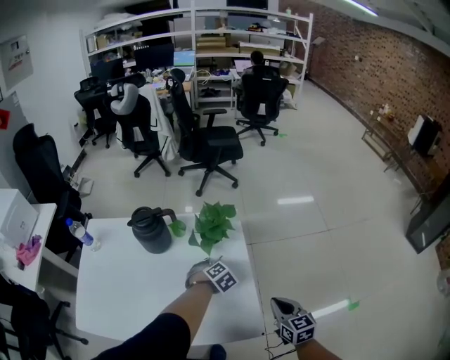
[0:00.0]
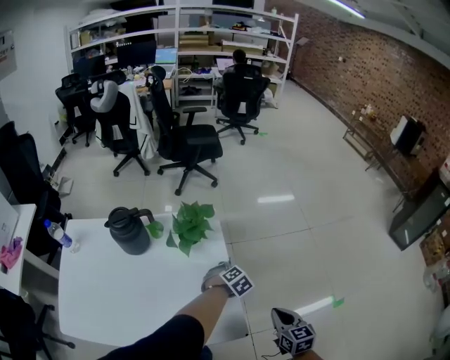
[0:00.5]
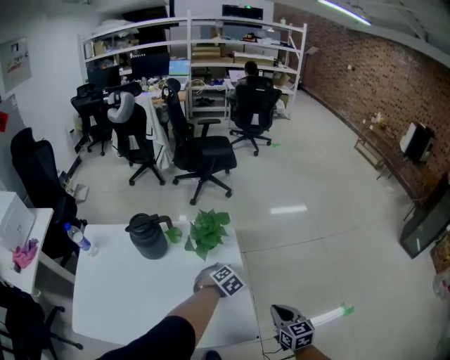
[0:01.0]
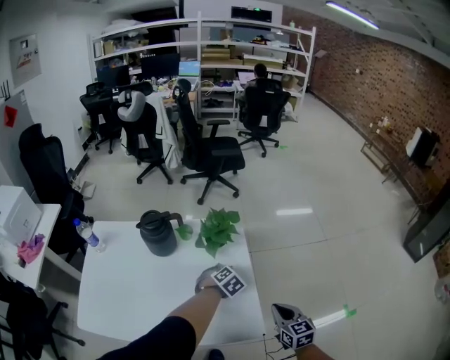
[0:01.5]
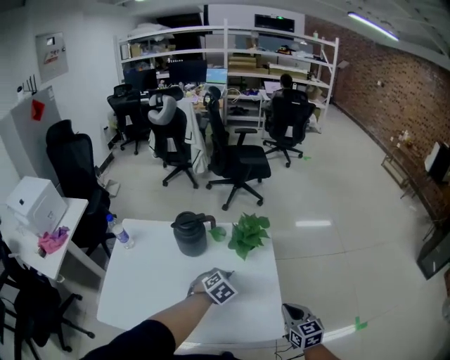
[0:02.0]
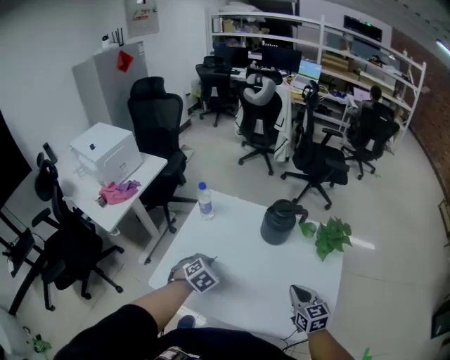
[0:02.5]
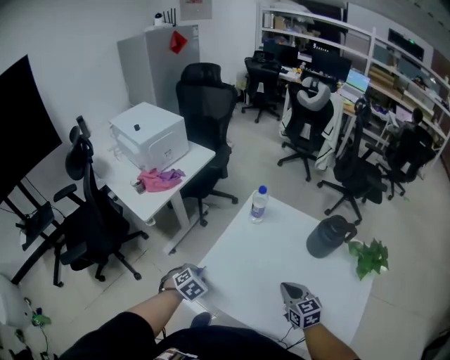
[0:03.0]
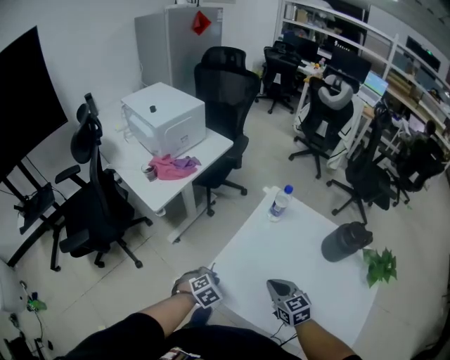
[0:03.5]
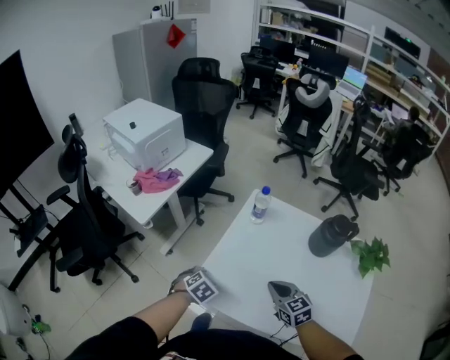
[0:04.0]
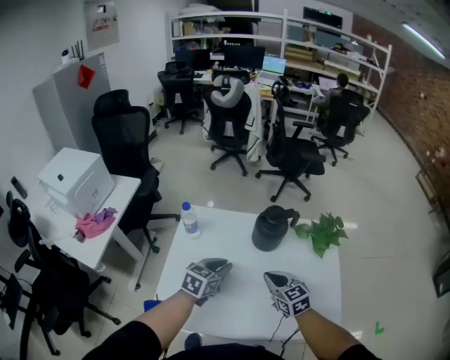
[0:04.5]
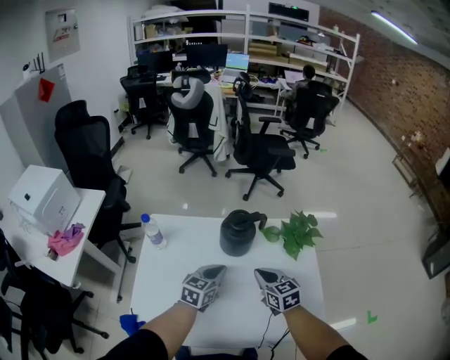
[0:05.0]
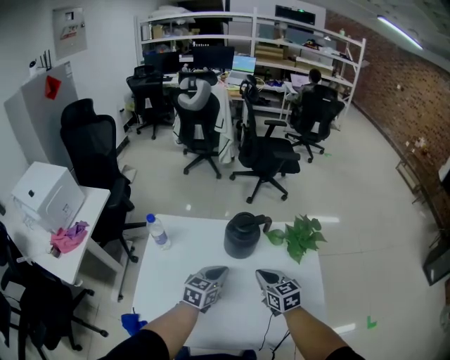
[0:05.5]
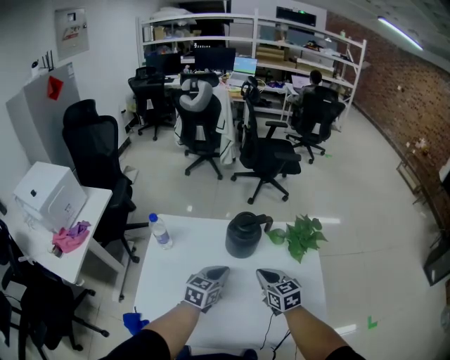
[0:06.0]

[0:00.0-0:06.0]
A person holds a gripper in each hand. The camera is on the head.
0:00.0 to 0:02.0: The right gripper shifts approximately 5 cm to the left; the left gripper heads to the left, upward and backward, covering about 15 cm.
0:02.0 to 0:04.0: Both grippers are carried roughly 60 cm. The left gripper swivels roughly 40 degrees, and opens its fingers. The right gripper swivels approximately 40 degrees.
0:04.0 to 0:06.0: The left gripper changes place by roughly 40 cm, tips its fingers upward by approximately 40 degrees, and closes up, while the right gripper moves roughly 25 cm, and swivels some 30 degrees.

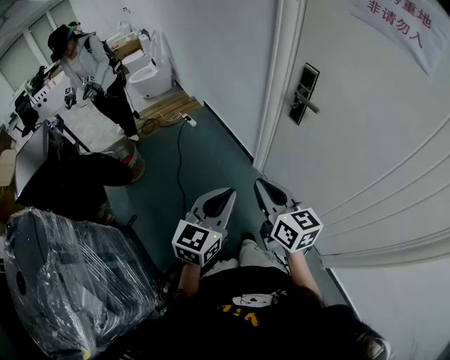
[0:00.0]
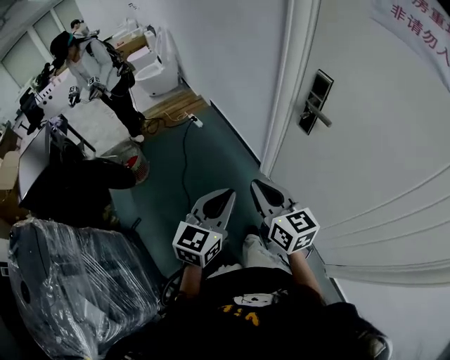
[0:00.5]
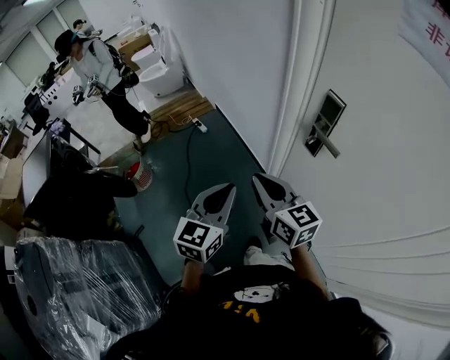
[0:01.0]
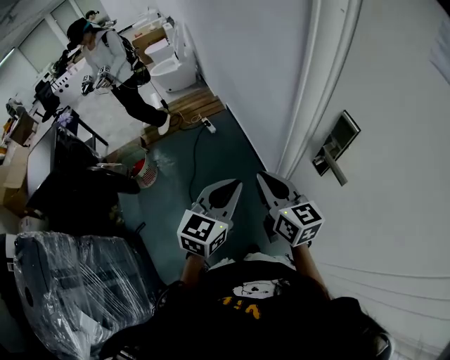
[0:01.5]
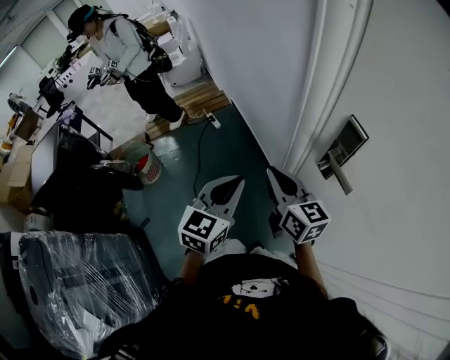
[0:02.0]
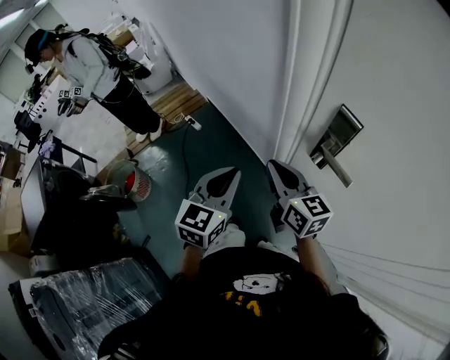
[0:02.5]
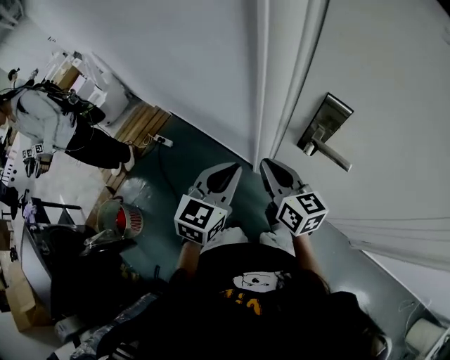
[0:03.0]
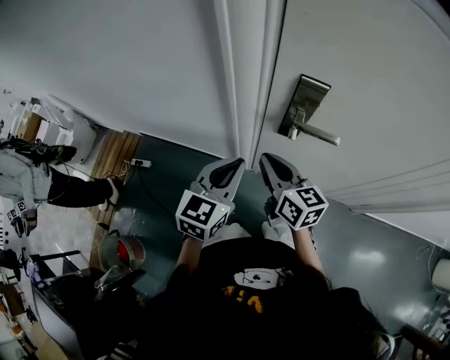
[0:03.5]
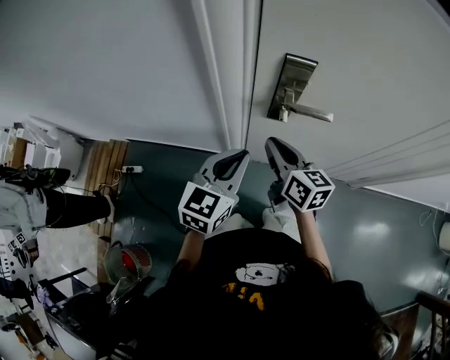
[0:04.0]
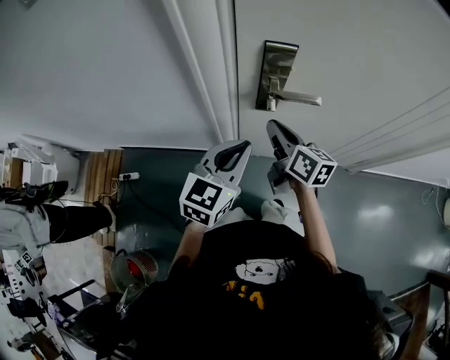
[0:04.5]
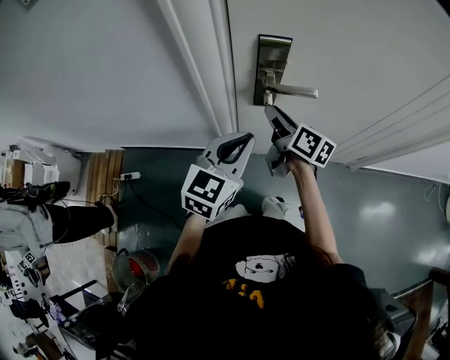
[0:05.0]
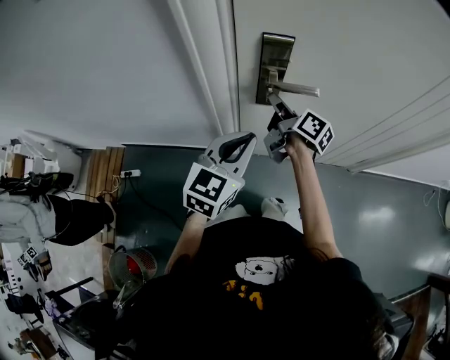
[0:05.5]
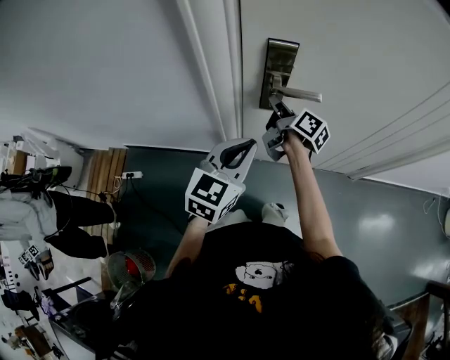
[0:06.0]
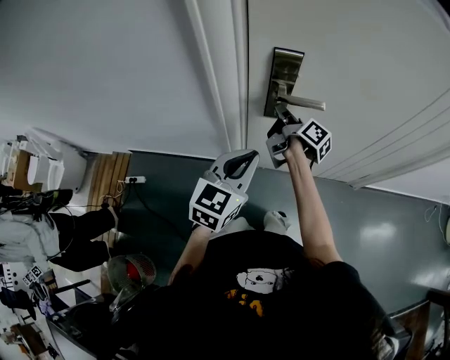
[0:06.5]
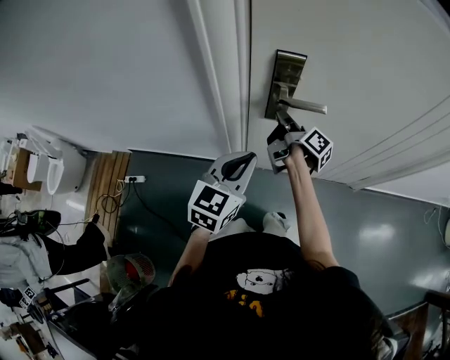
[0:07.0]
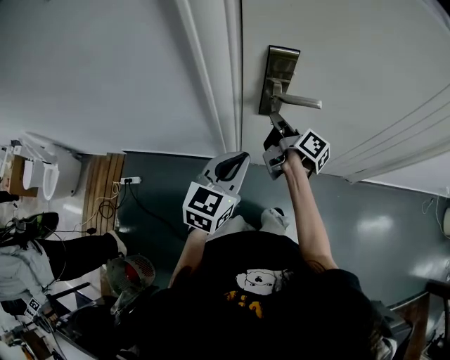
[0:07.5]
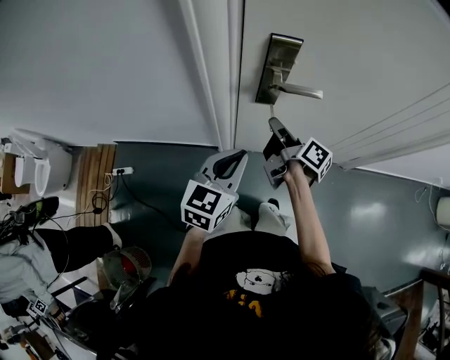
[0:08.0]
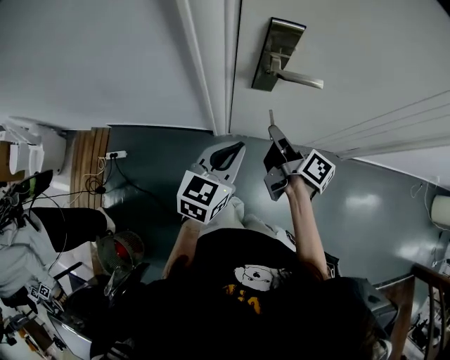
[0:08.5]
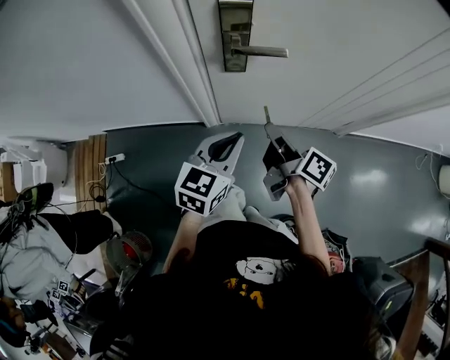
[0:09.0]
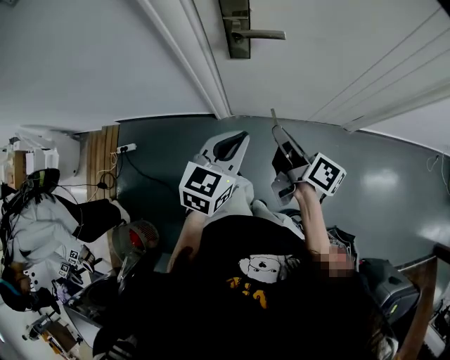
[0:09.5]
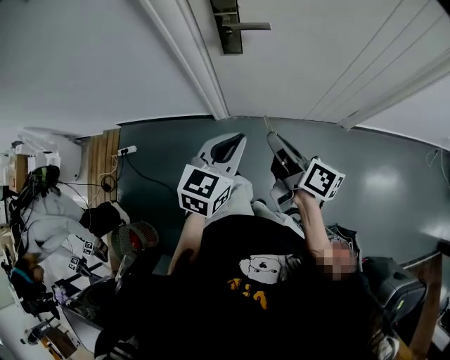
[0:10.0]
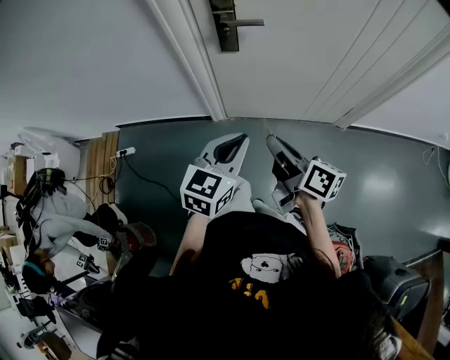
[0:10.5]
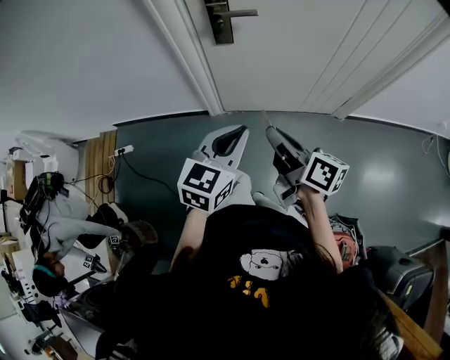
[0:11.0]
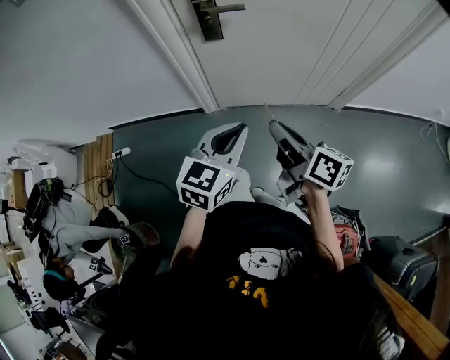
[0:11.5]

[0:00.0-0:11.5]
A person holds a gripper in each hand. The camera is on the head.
0:00.0 to 0:02.0: Both grippers travel together forward, about 30 cm.
0:02.0 to 0:04.0: The right gripper changes place by approximately 15 cm, and rotates approximately 60 degrees. The left gripper shifts by roughly 15 cm, and turns by some 60 degrees.
0:04.0 to 0:06.0: The right gripper goes about 10 cm forward, and changes its angle by approximately 40 degrees.
0:06.0 to 0:07.5: The grippers stay close to where they were, moving slightly.
0:07.5 to 0:09.5: The left gripper travels backward and to the right by approximately 15 cm. The right gripper heads backward and to the right, covering about 25 cm.
0:09.5 to 0:11.5: Both grippers travel together backward, roughly 10 cm.

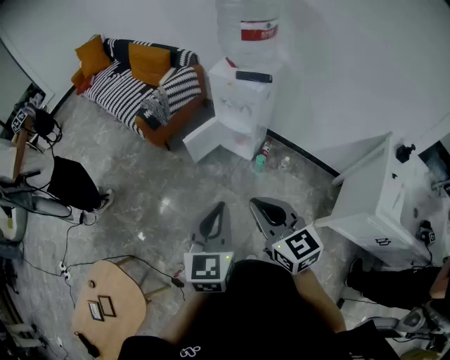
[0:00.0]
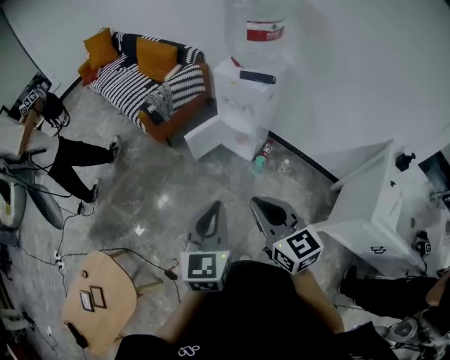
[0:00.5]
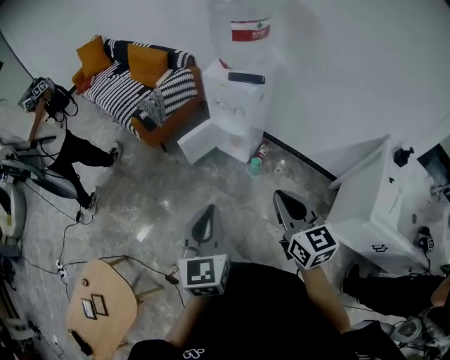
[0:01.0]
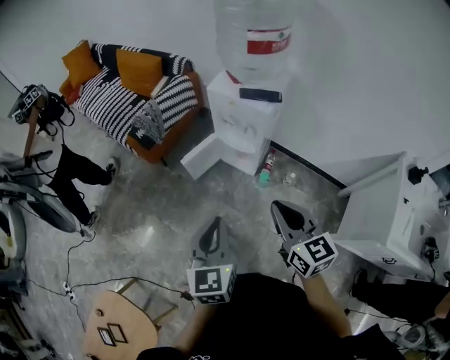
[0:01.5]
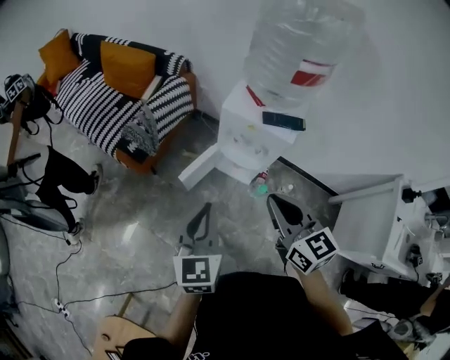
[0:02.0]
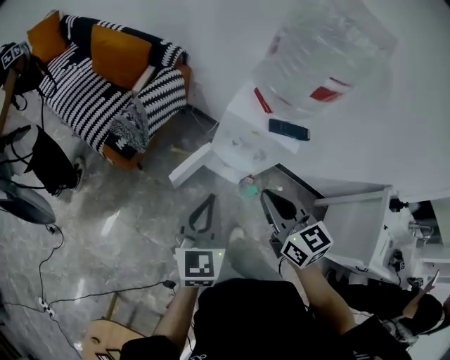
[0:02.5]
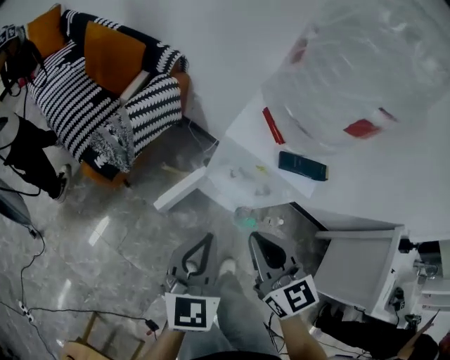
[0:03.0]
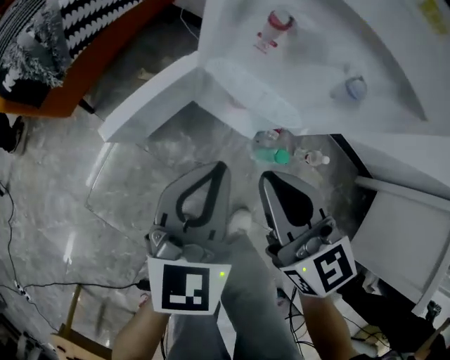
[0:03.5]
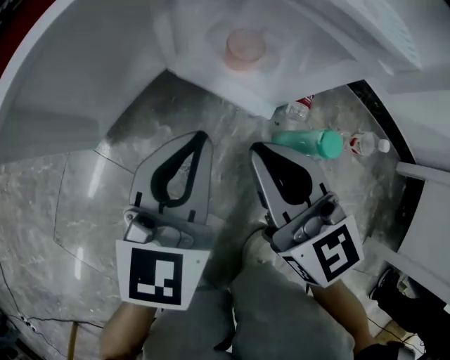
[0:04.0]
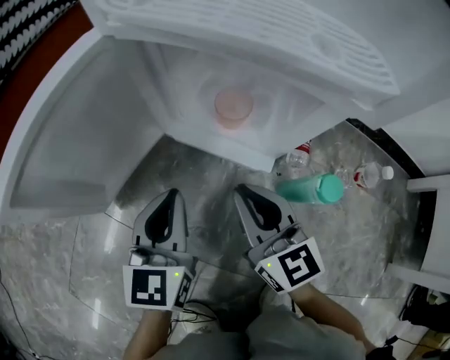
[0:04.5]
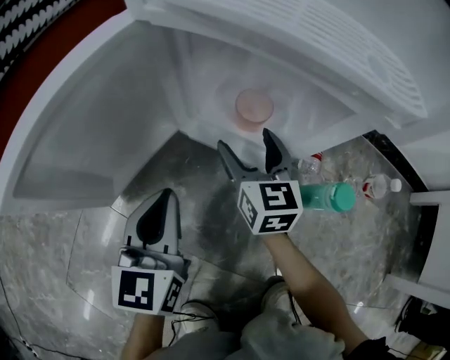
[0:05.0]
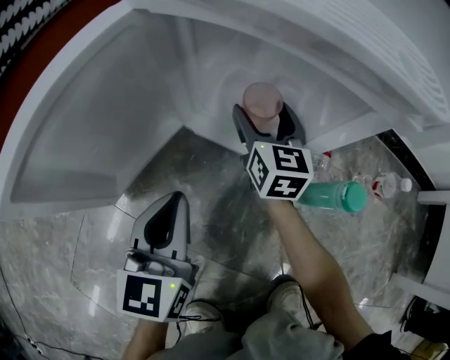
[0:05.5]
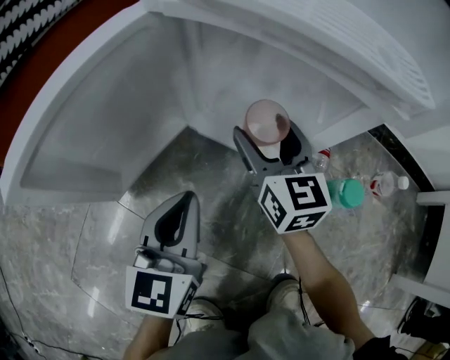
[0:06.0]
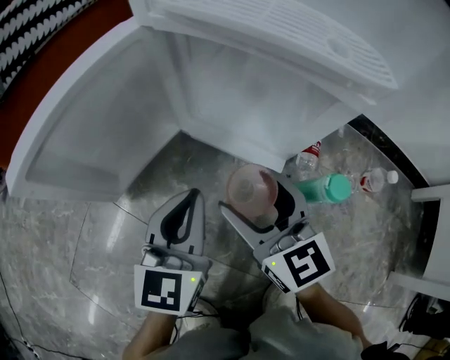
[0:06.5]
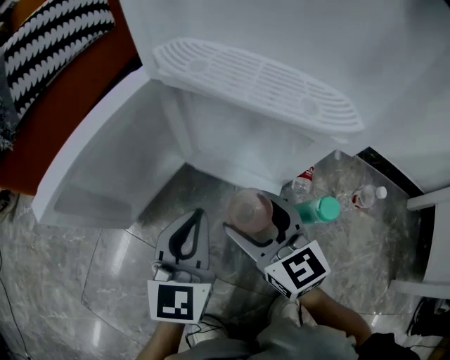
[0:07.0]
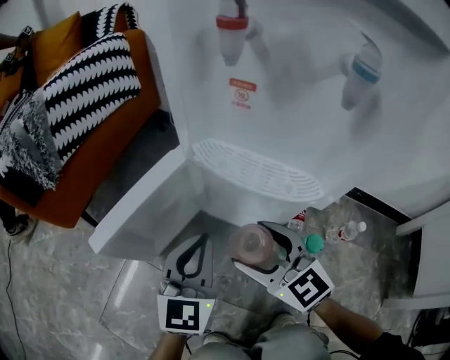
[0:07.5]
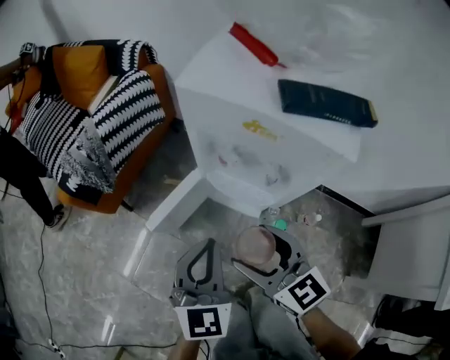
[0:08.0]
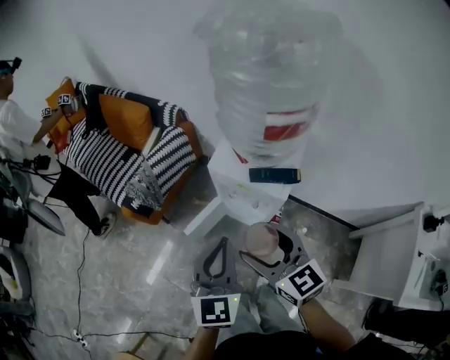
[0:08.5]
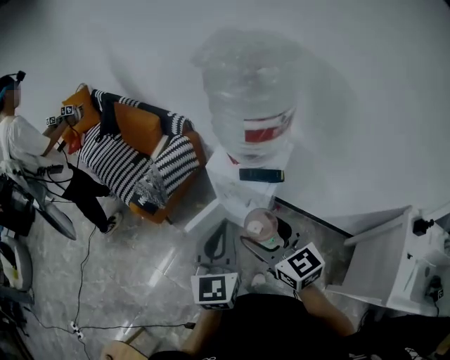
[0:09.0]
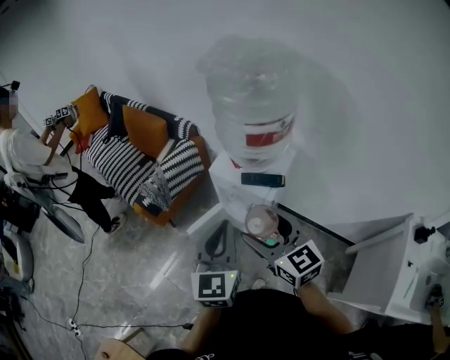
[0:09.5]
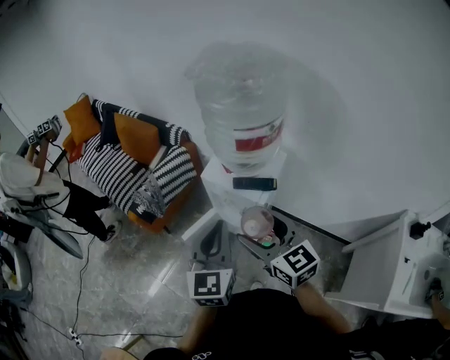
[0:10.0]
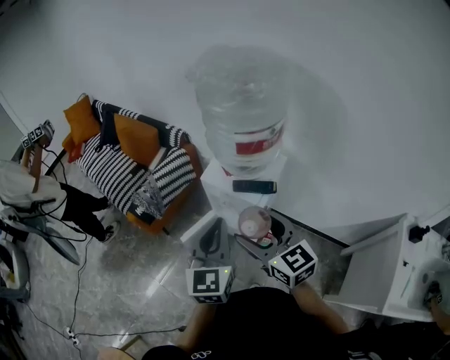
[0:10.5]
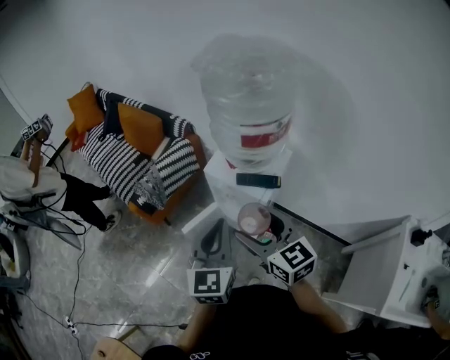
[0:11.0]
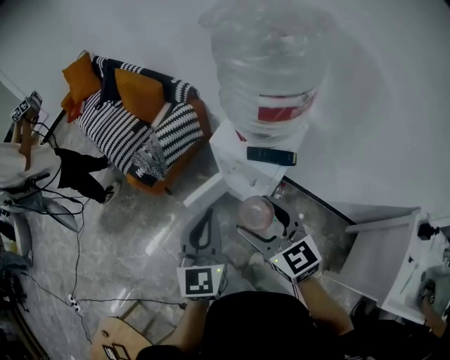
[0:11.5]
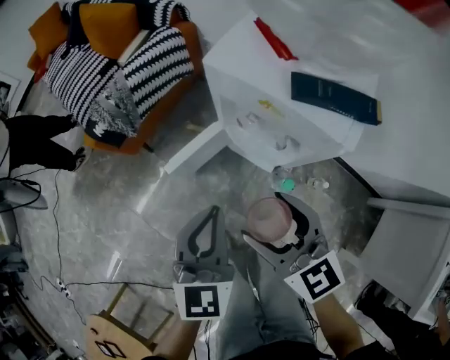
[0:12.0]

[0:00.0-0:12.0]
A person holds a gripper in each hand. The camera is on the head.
0:00.0 to 0:02.0: The two grippers go roughly 35 cm forward.
0:02.0 to 0:04.0: The grippers both shift downward by roughly 70 cm.
0:04.0 to 0:06.0: The right gripper travels forward and downward by about 20 cm, and opens up. Meanwhile the left gripper goes some 10 cm downward and to the left.
0:06.0 to 0:08.0: The grippers both shift upward by approximately 50 cm. The right gripper rotates about 20 degrees.
0:08.0 to 0:10.0: The grippers both shift upward by about 40 cm.
0:10.0 to 0:12.0: Both grippers move downward, some 30 cm.
